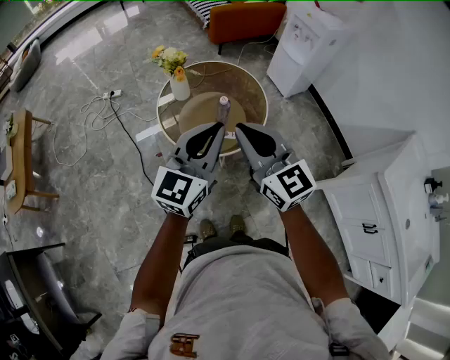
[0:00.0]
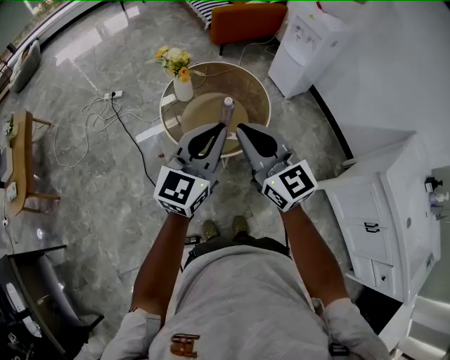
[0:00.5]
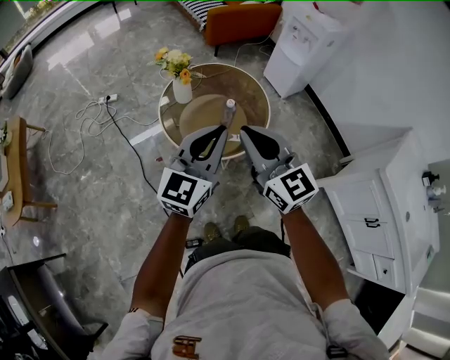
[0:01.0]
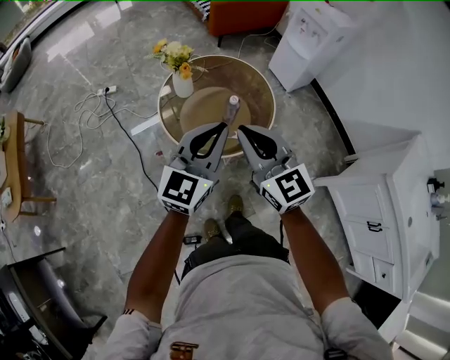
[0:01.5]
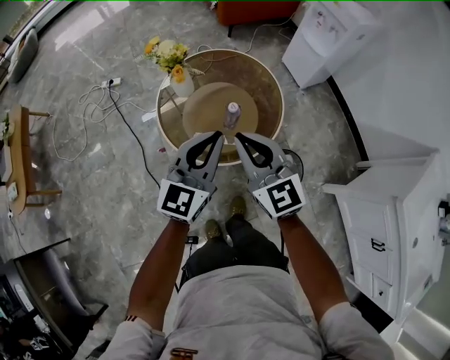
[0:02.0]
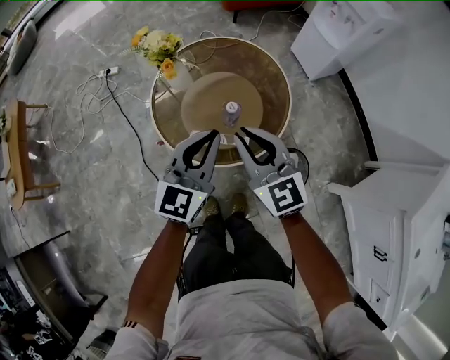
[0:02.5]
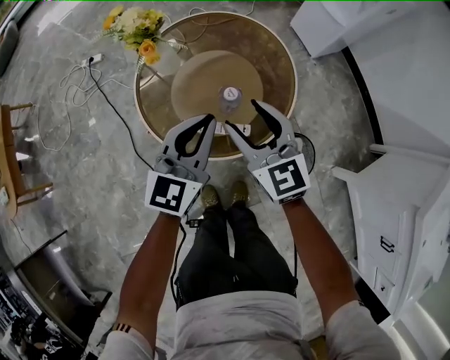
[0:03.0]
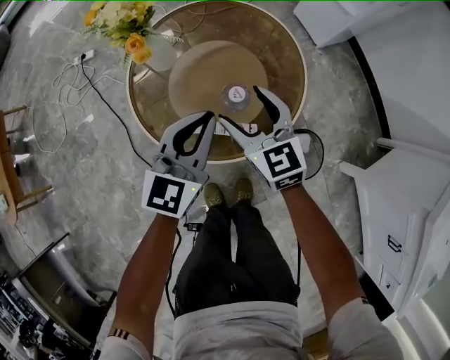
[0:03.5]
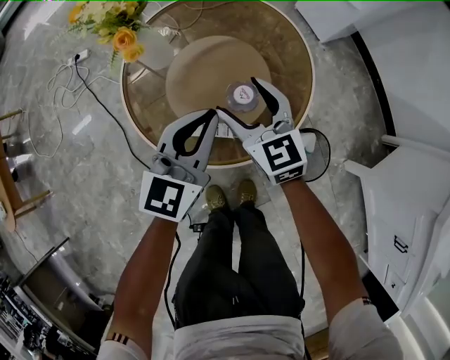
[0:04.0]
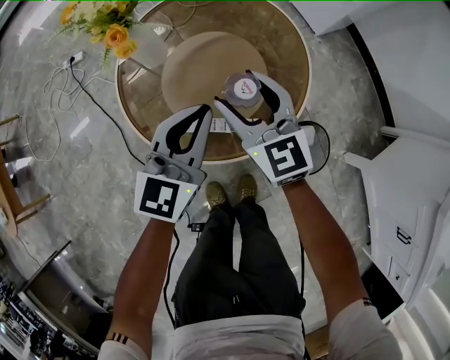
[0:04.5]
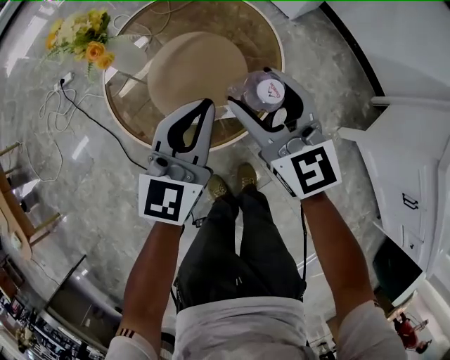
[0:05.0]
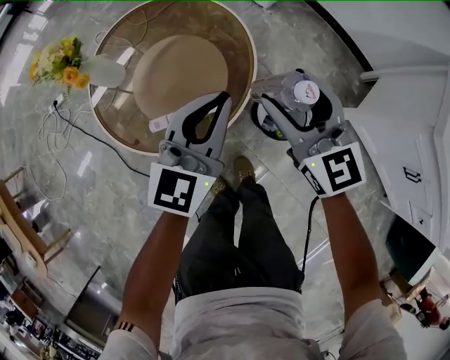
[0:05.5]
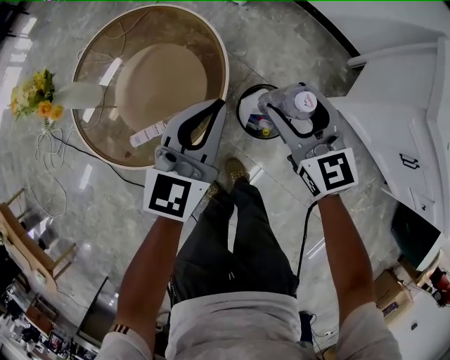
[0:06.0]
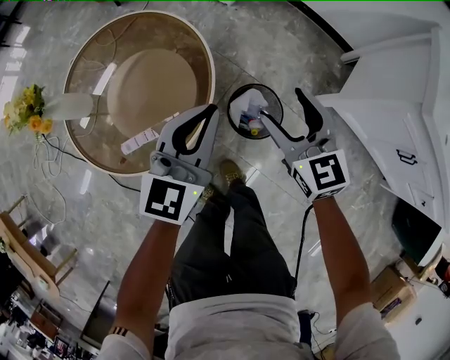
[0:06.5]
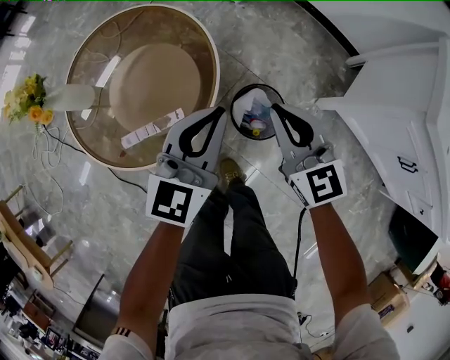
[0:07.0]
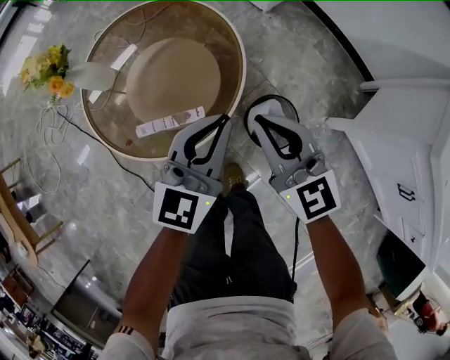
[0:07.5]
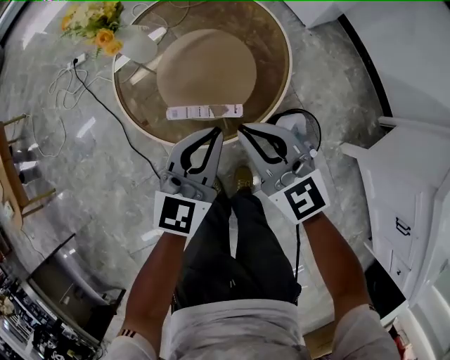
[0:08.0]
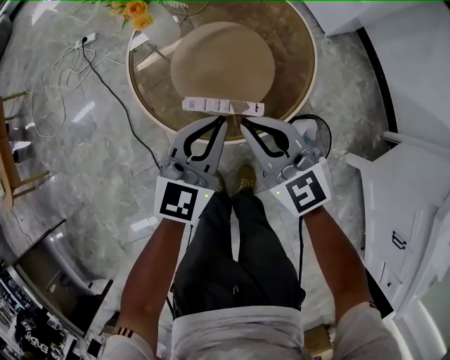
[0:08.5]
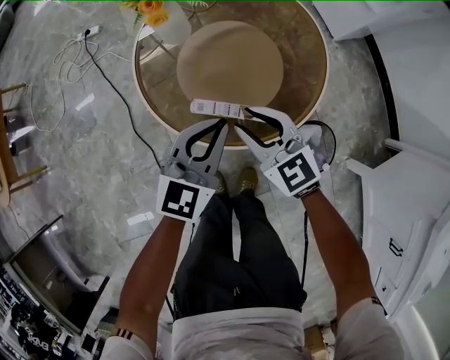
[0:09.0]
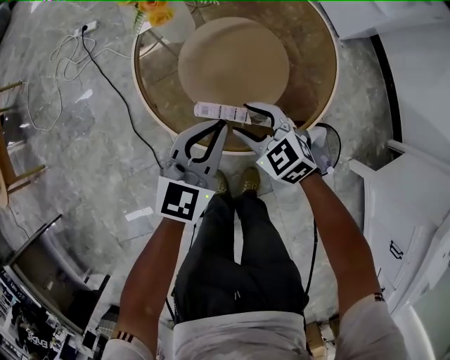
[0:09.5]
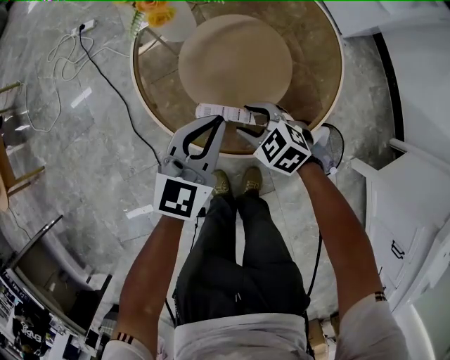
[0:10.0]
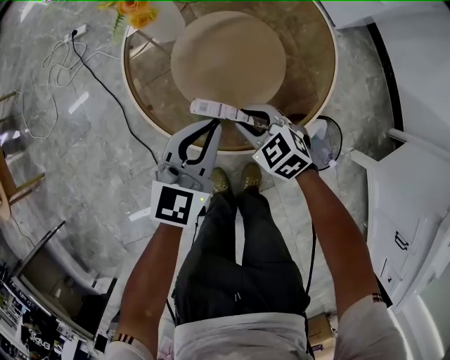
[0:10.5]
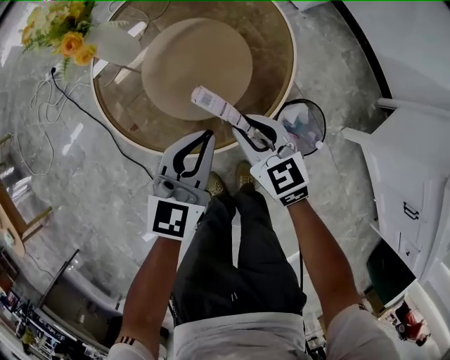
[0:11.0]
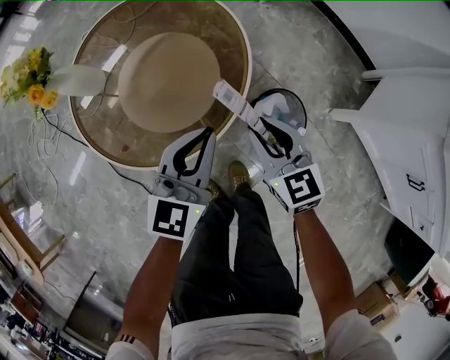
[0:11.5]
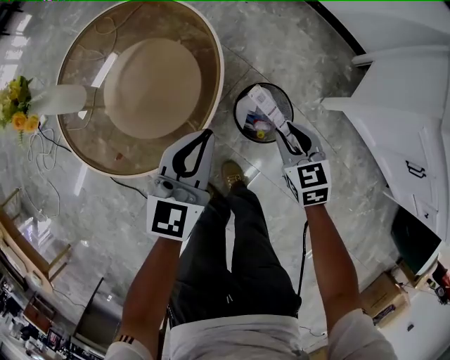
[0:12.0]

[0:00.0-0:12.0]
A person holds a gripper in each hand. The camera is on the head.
0:00.0 to 0:02.0: The right gripper goes some 15 cm downward and forward. The left gripper travels forward and downward by about 15 cm.
0:02.0 to 0:04.0: The two grippers go some 30 cm downward and forward. The right gripper opens up.
0:04.0 to 0:06.0: The right gripper shifts by some 35 cm, and changes its angle by some 30 degrees; the left gripper moves some 25 cm, and swivels approximately 20 degrees.
0:06.0 to 0:08.0: The left gripper changes place by approximately 15 cm, and swivels approximately 20 degrees; the right gripper ends up some 20 cm from where it was, swivels about 40 degrees, and closes.
0:08.0 to 0:10.0: The right gripper heads downward, covering roughly 25 cm, tilts its fingers roughly 40 degrees downward, and opens up, while the left gripper shifts some 15 cm downward, to the left and forward.
0:10.0 to 0:12.0: The left gripper ends up some 25 cm from where it was, and turns by roughly 20 degrees, while the right gripper shifts by about 40 cm, and changes its angle by about 70 degrees.

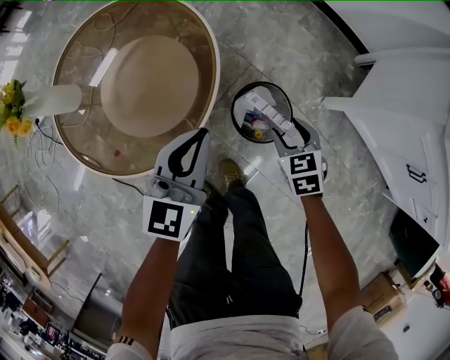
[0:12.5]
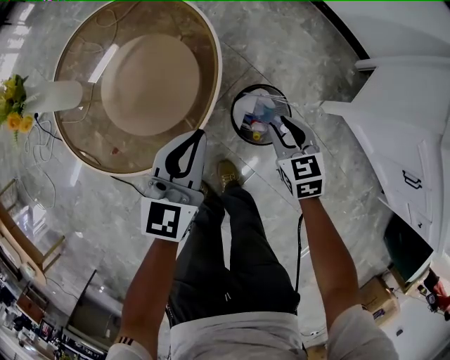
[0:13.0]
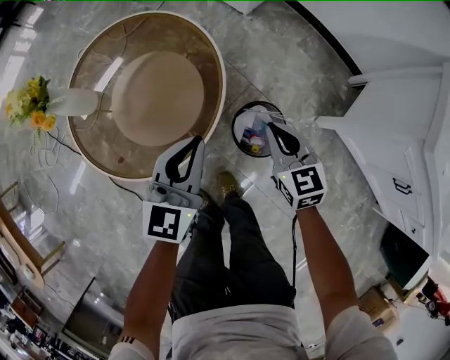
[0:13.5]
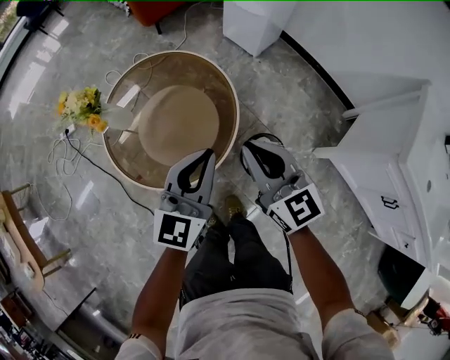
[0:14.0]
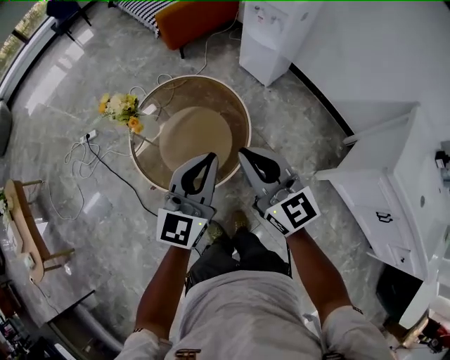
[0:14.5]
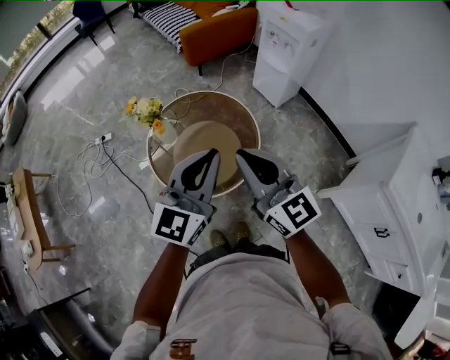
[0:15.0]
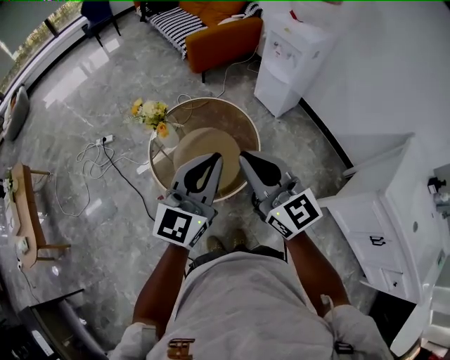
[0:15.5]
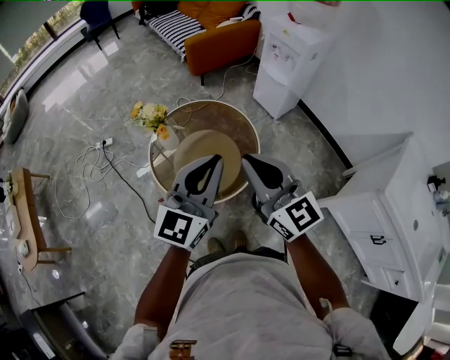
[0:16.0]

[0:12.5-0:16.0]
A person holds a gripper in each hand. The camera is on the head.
0:12.5 to 0:14.5: The right gripper heads upward and to the left, covering some 50 cm, tips its fingers upward by some 50 degrees, and closes its fingers; the left gripper heads upward, covering approximately 30 cm, and rotates roughly 20 degrees.
0:14.5 to 0:16.0: Both grippers move upward, about 10 cm.

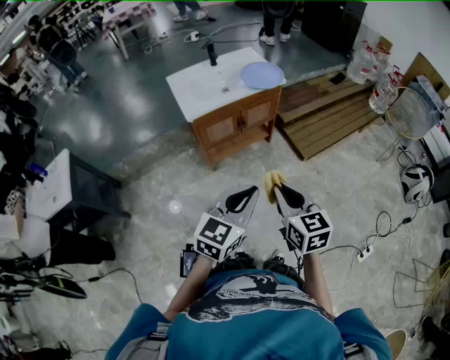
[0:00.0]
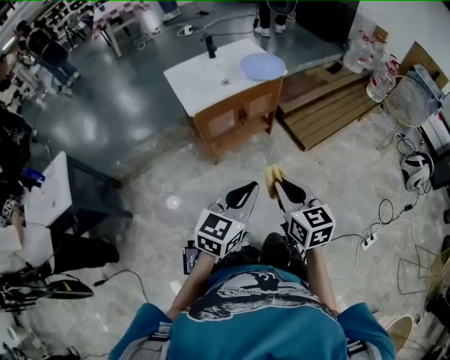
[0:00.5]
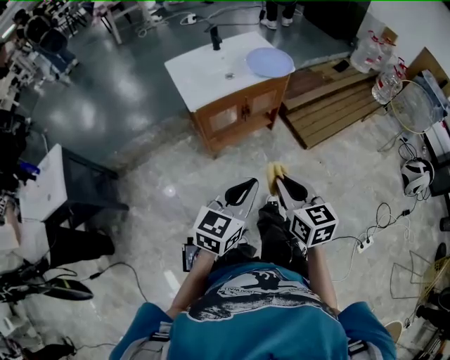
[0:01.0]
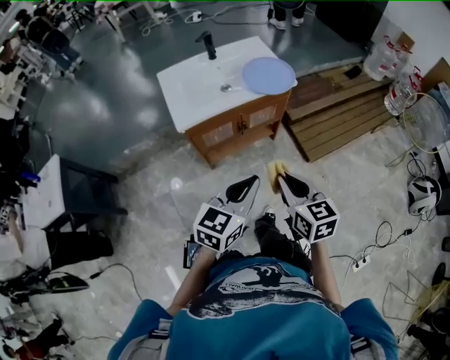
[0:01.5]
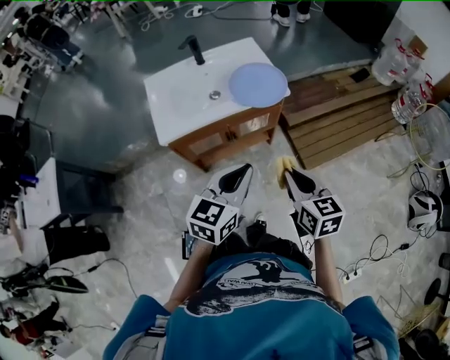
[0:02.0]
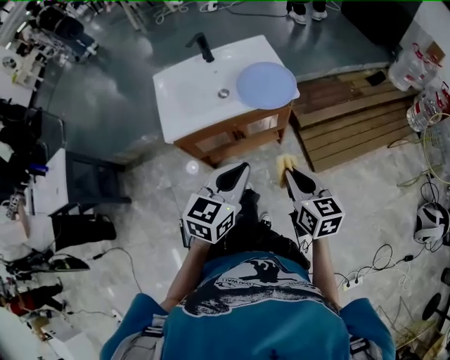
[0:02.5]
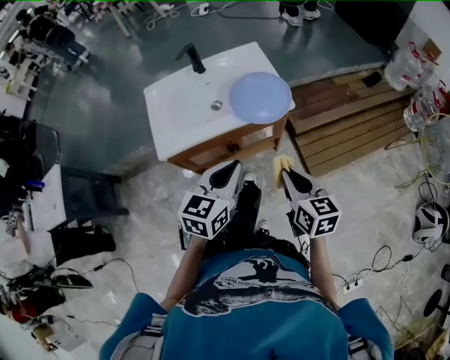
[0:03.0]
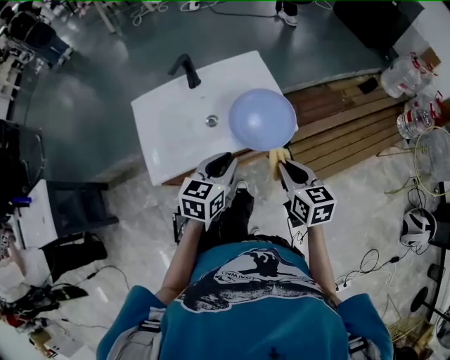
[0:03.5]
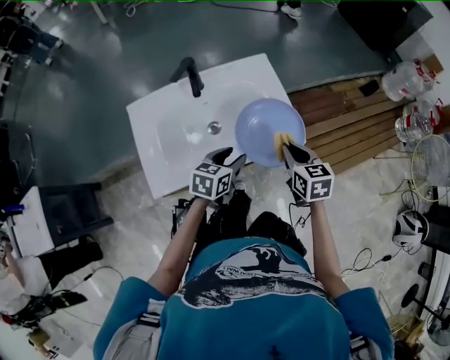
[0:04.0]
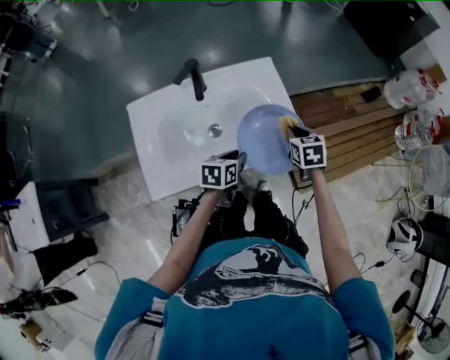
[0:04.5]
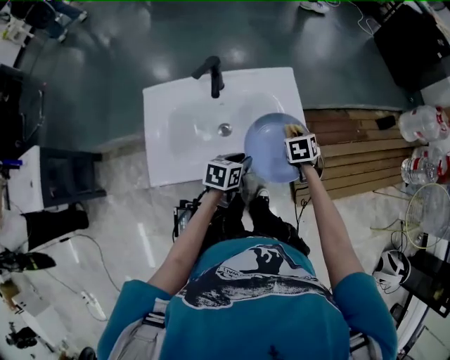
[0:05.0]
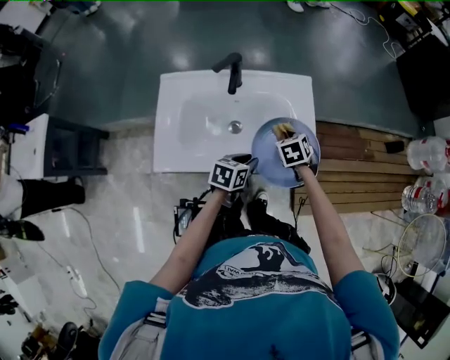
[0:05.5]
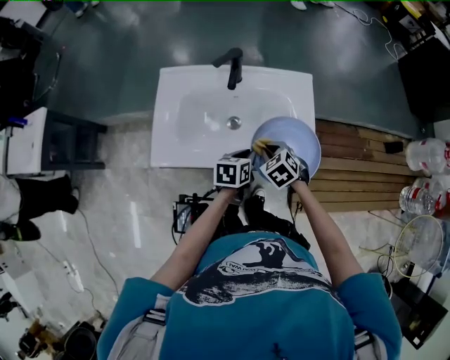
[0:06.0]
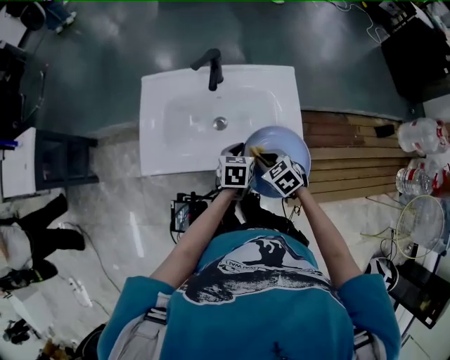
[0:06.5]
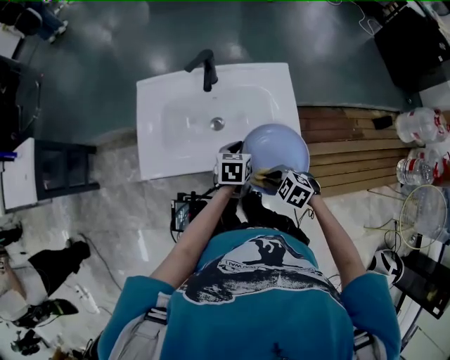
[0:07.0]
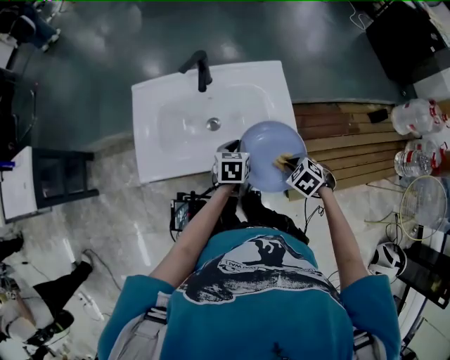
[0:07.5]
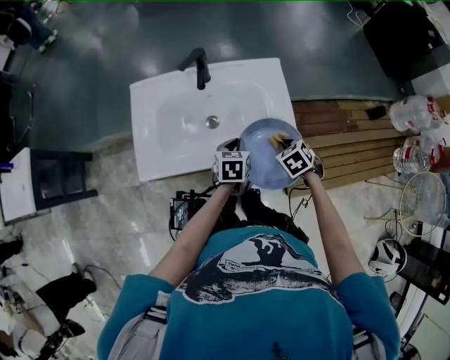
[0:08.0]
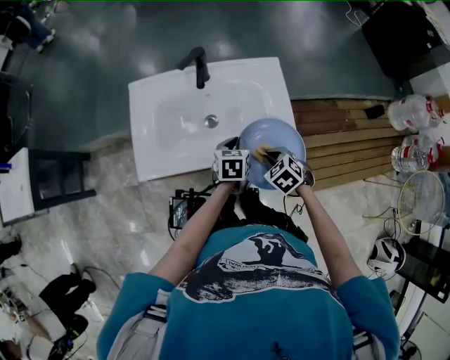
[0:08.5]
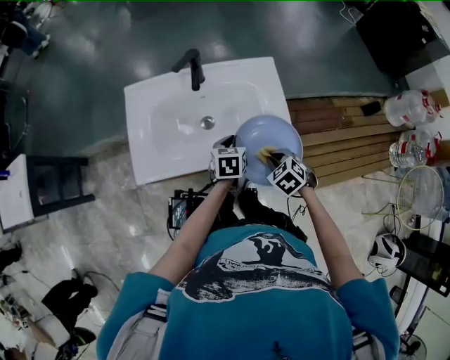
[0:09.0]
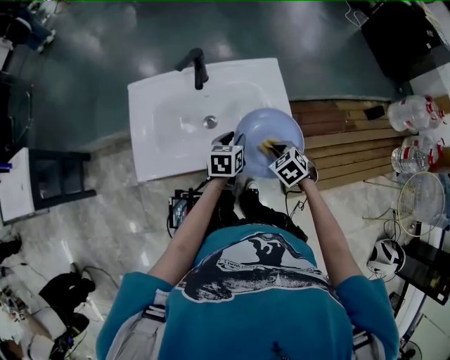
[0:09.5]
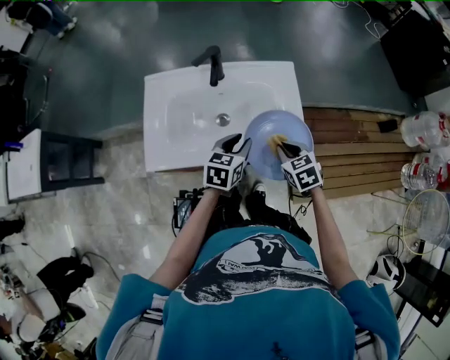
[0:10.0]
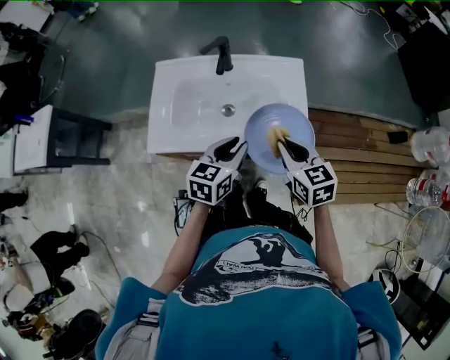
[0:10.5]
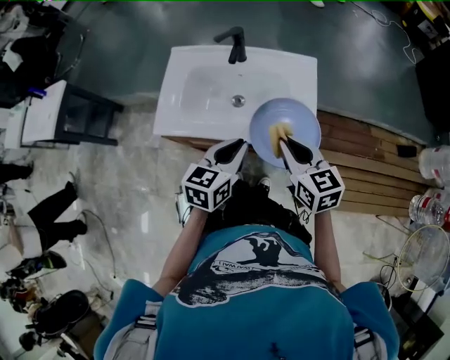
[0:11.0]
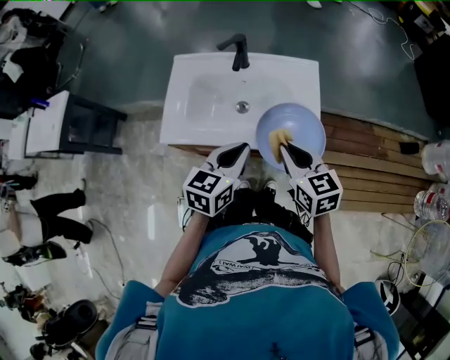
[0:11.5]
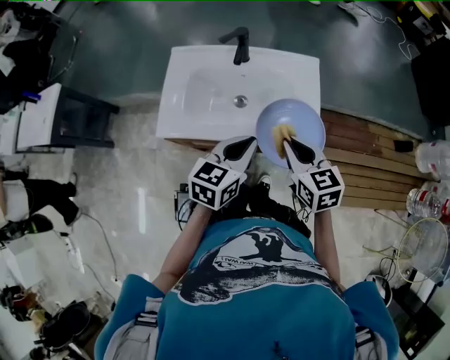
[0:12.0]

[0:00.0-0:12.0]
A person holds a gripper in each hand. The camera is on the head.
0:00.0 to 0:02.0: The grippers both shift forward by roughly 30 cm.
0:02.0 to 0:04.0: The left gripper heads forward and downward, covering approximately 35 cm, changes its angle by approximately 20 degrees, and opens up. The right gripper shifts some 35 cm forward.
0:04.0 to 0:06.0: The left gripper heads downward, covering approximately 5 cm, changes its angle by roughly 30 degrees, and closes. The right gripper ends up about 15 cm from where it was, and rotates around the line of its fingers by roughly 50 degrees, counterclockwise from behind.
0:06.0 to 0:08.0: The right gripper changes place by some 10 cm.
0:08.0 to 0:10.0: The right gripper shifts by about 5 cm. The left gripper goes some 5 cm upward, and opens up.
0:10.0 to 0:12.0: The two grippers go roughly 15 cm upward and backward. The left gripper closes. The right gripper rotates roughly 20 degrees.
